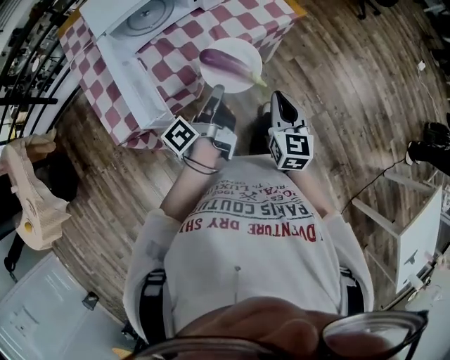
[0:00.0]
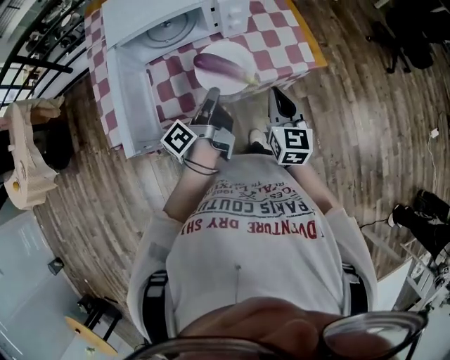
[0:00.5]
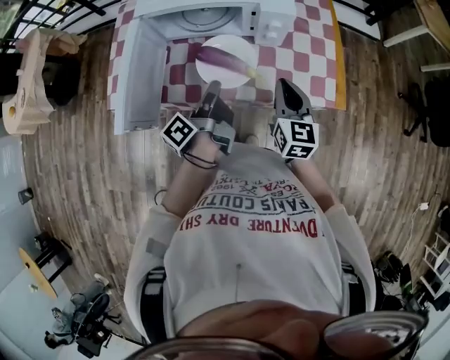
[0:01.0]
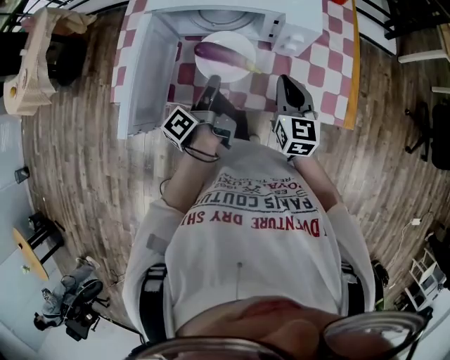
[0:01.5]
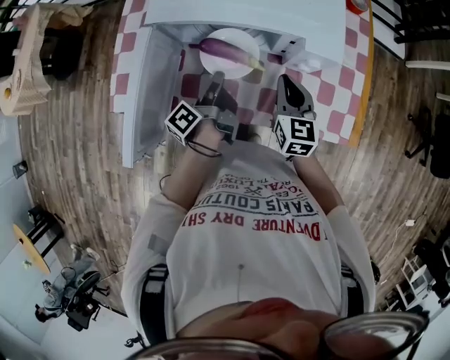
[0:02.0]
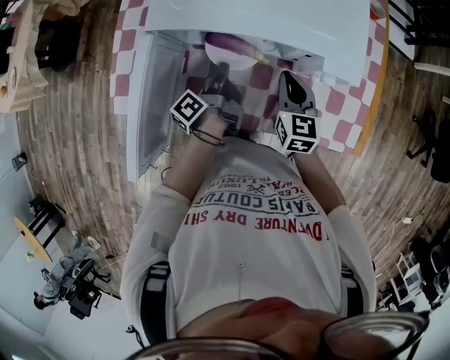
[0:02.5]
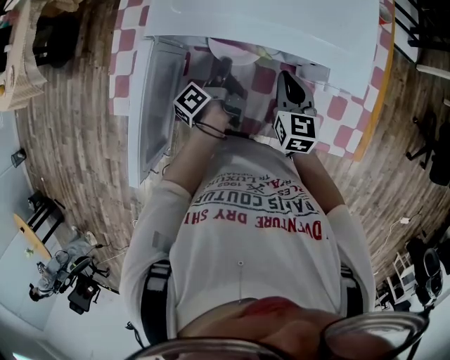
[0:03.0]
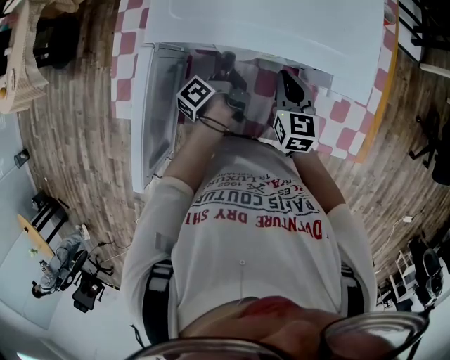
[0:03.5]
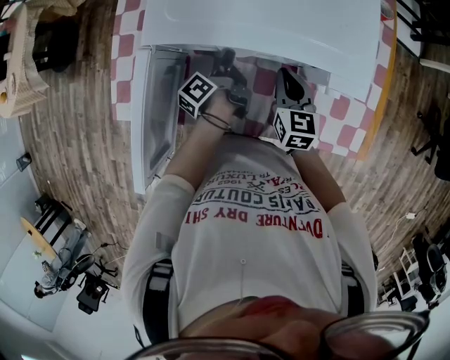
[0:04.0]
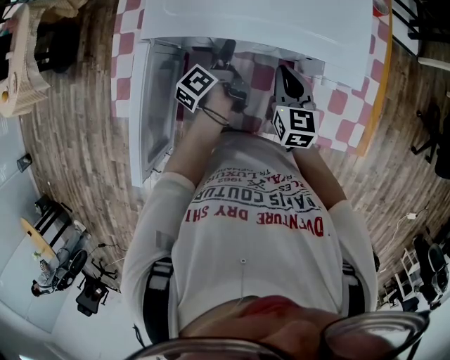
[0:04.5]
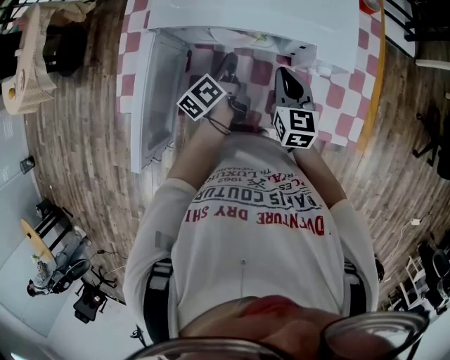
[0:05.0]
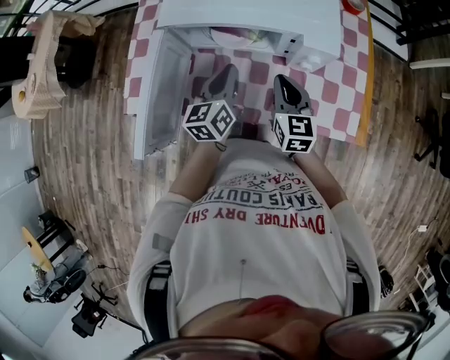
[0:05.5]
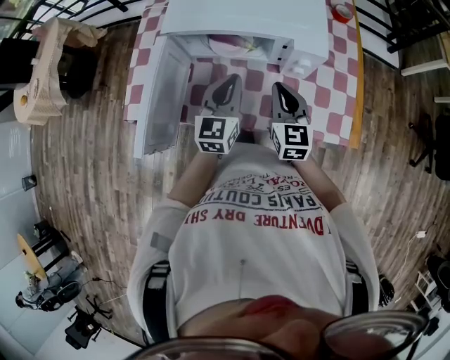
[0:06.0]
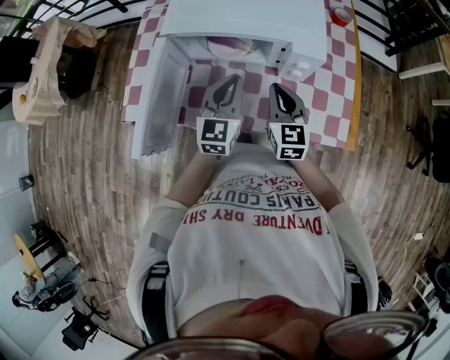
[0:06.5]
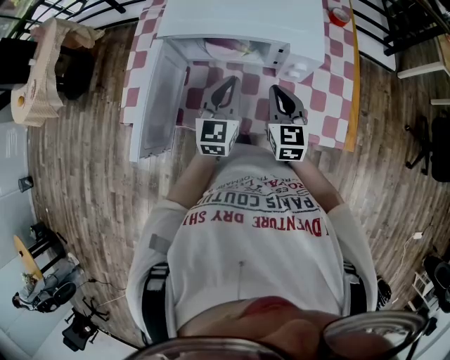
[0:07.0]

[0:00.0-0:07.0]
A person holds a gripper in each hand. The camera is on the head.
0:00.0 to 0:02.0: The right gripper changes place by some 40 cm, and changes its angle by some 40 degrees.
0:02.0 to 0:03.5: The right gripper shifts by about 10 cm.
0:03.5 to 0:05.0: The right gripper ends up roughly 5 cm from where it was.
0:05.0 to 0:07.0: The right gripper changes place by some 10 cm.

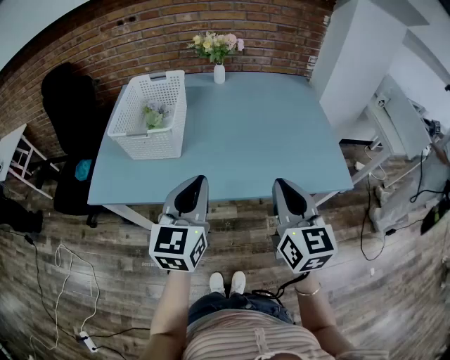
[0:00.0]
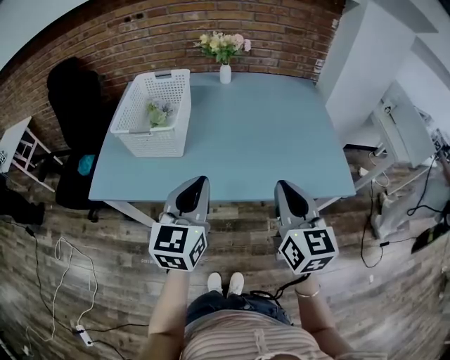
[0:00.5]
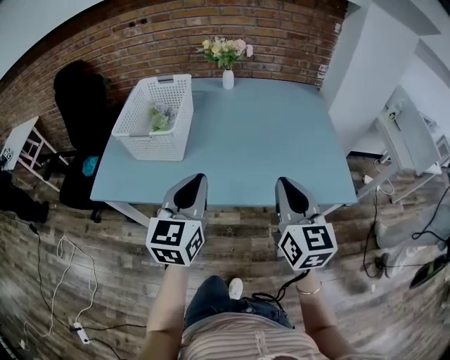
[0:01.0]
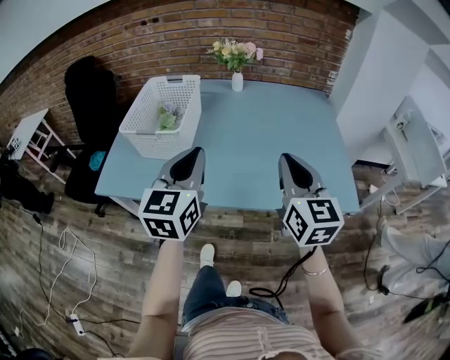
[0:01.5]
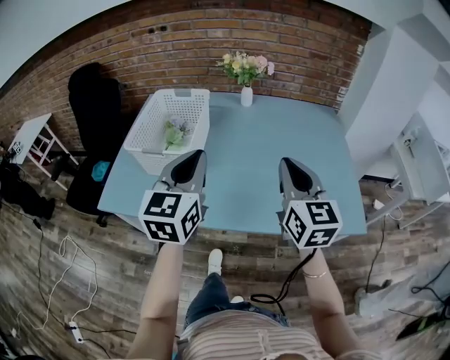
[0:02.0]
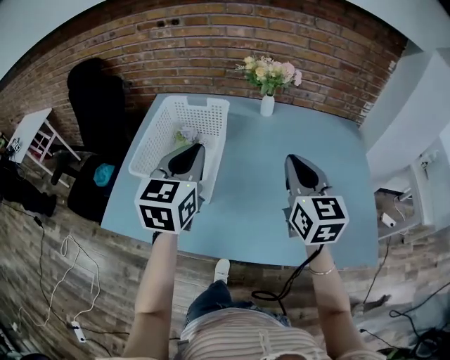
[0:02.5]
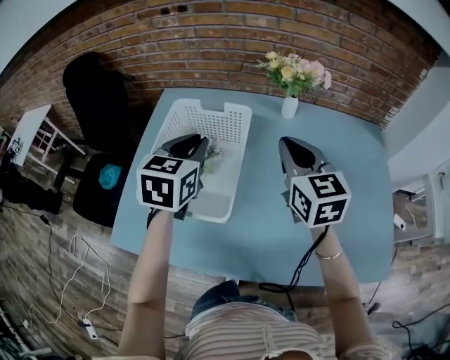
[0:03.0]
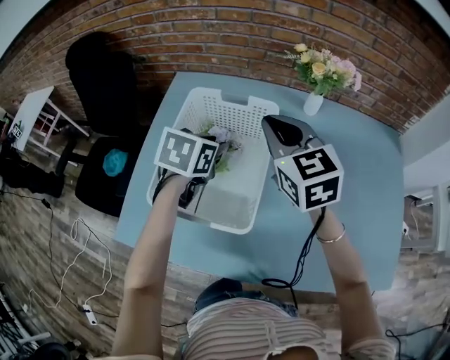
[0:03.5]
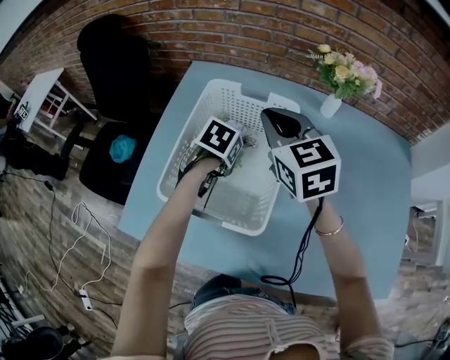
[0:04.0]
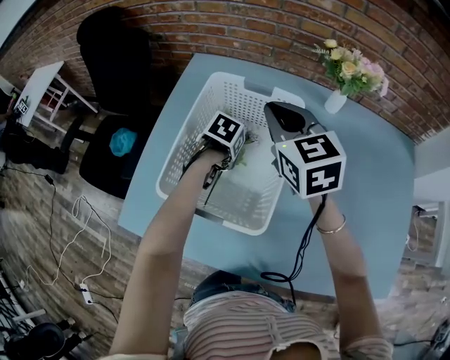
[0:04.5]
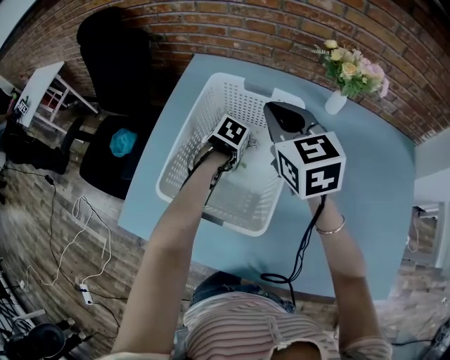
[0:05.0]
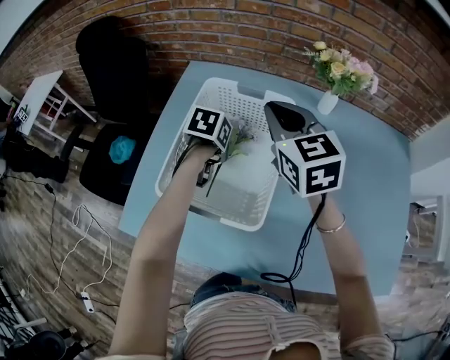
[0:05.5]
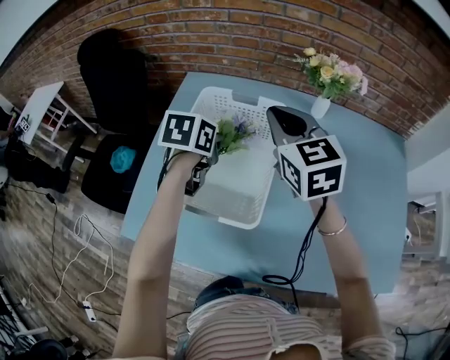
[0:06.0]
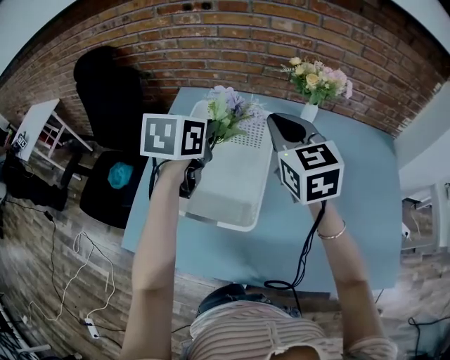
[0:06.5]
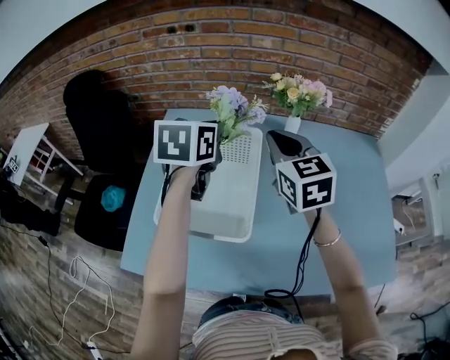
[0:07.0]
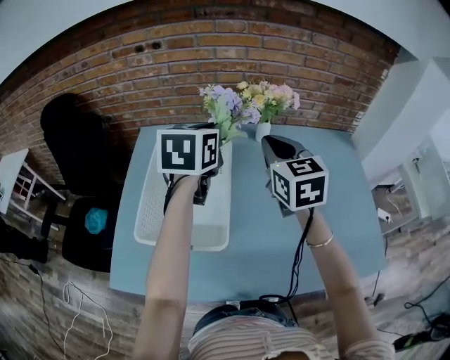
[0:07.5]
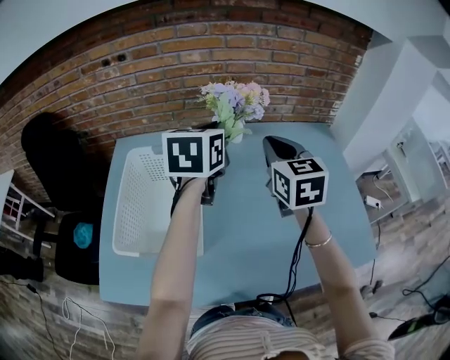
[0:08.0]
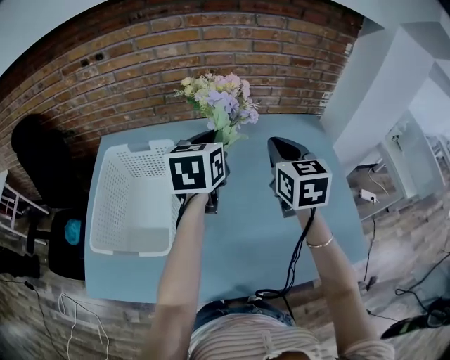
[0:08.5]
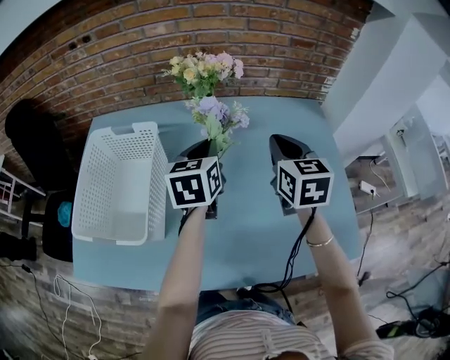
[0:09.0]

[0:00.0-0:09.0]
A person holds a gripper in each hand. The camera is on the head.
0:00.0 to 0:02.0: The right gripper travels forward by some 15 cm; the left gripper is displaced forward and upward by approximately 15 cm.
0:02.0 to 0:04.5: The right gripper goes some 50 cm forward and to the left, and swivels roughly 30 degrees. Meanwhile the left gripper heads forward, downward and to the left, covering about 50 cm, tilts its fingers approximately 70 degrees downward, and opens up.
0:04.5 to 0:07.0: The left gripper moves upward, roughly 30 cm, angles its fingers upward, by some 50 degrees, and closes its fingers. The right gripper shifts by approximately 10 cm.
0:07.0 to 0:09.0: Both grippers travel together to the right, some 30 cm. The right gripper turns by some 20 degrees.

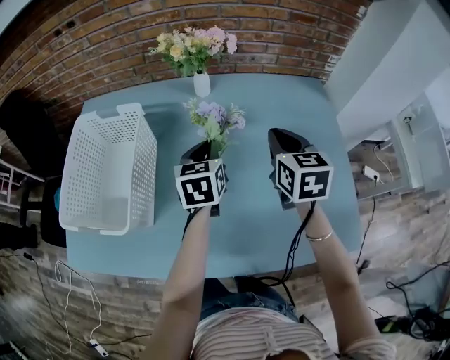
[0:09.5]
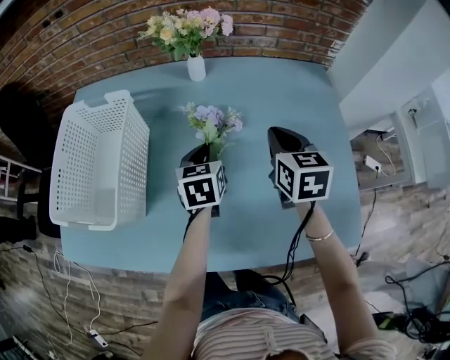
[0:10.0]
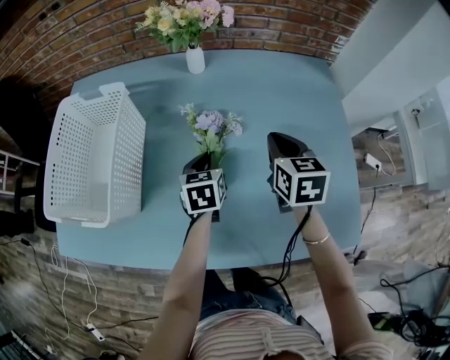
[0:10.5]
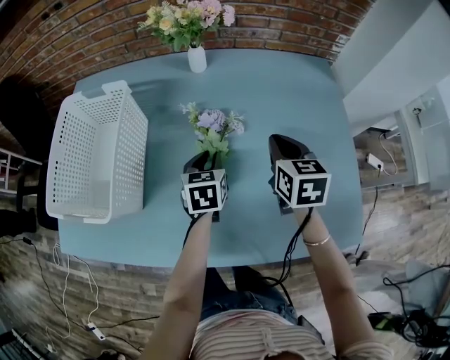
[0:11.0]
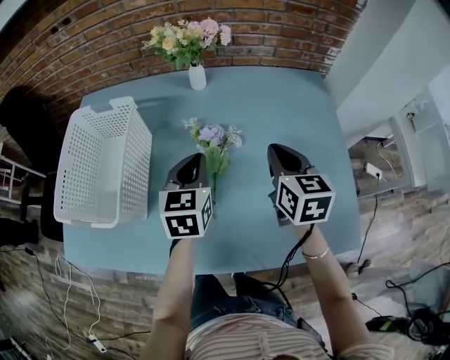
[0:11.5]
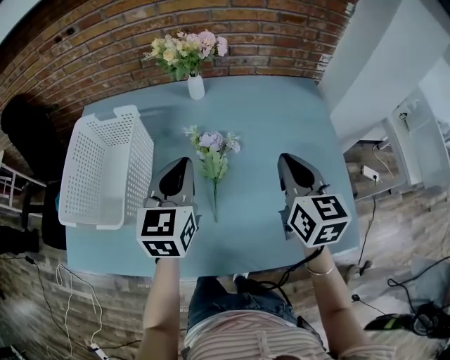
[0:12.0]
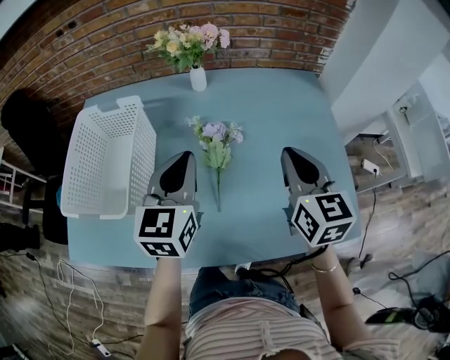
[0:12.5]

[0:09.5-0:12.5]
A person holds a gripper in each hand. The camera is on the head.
0:09.5 to 0:11.0: The two grippers go about 10 cm downward.
0:11.0 to 0:12.5: The left gripper travels upward by approximately 20 cm, rotates about 30 degrees, and closes its fingers; the right gripper moves upward and backward, about 15 cm.

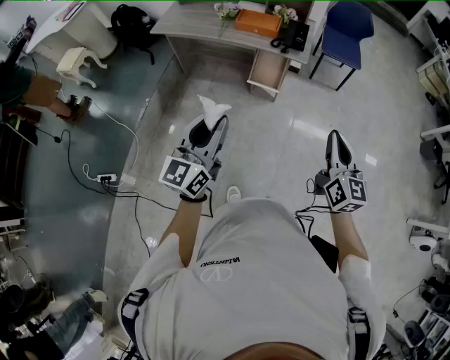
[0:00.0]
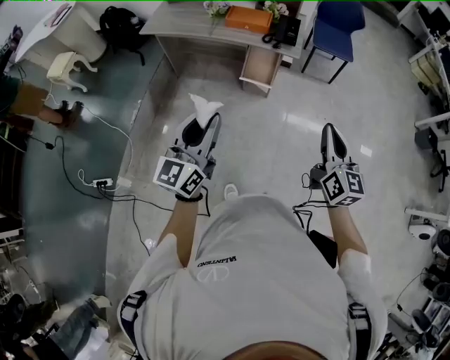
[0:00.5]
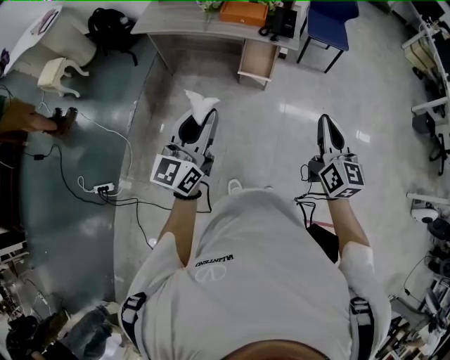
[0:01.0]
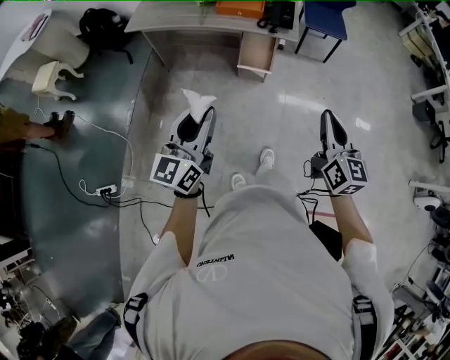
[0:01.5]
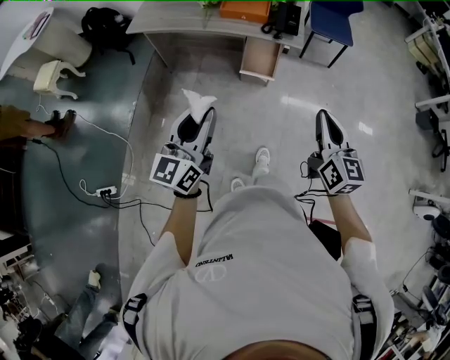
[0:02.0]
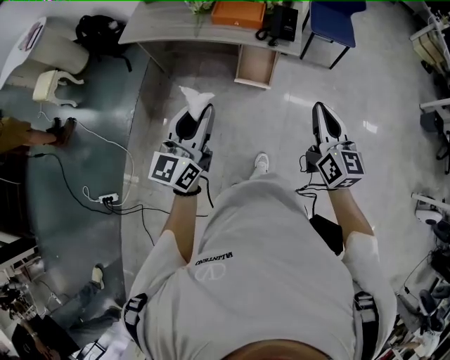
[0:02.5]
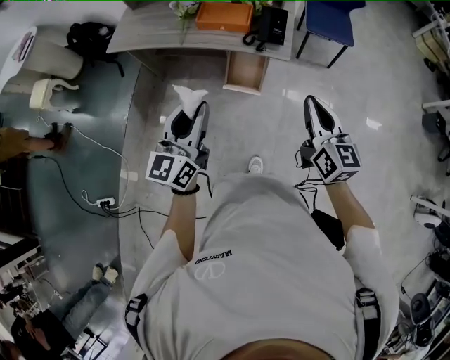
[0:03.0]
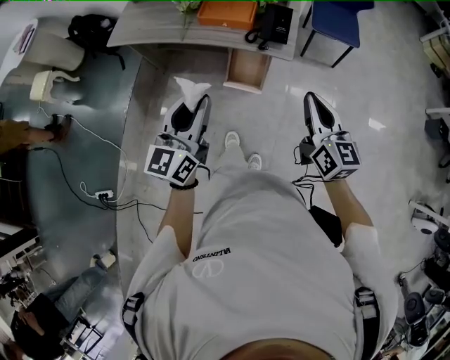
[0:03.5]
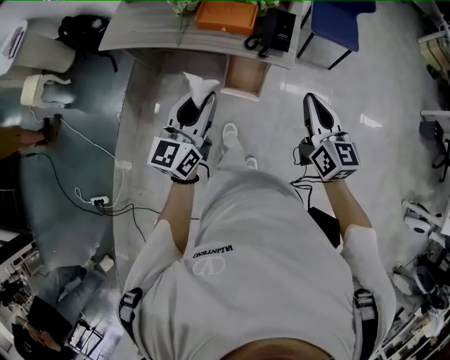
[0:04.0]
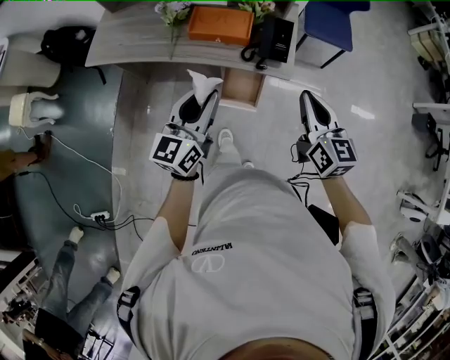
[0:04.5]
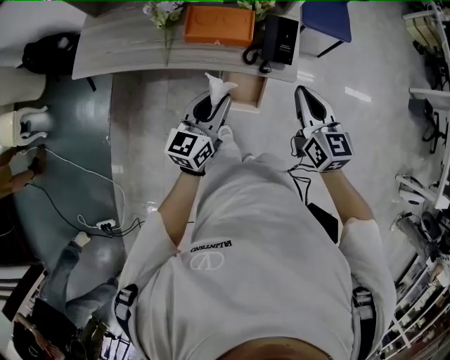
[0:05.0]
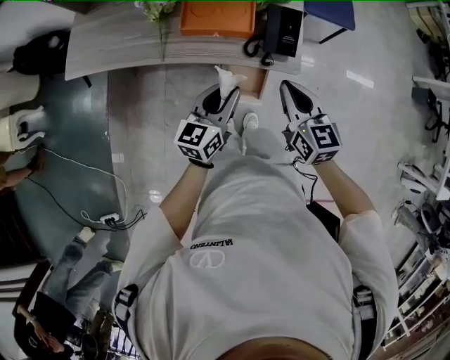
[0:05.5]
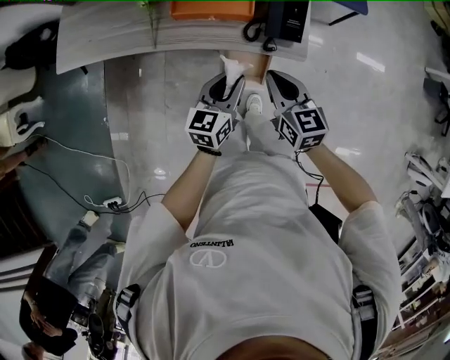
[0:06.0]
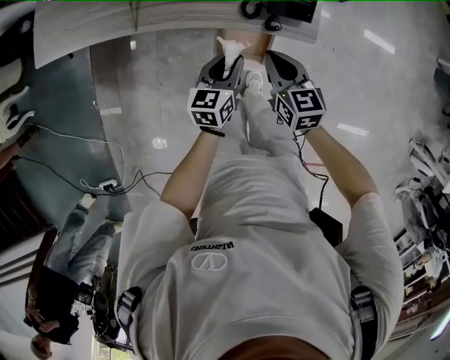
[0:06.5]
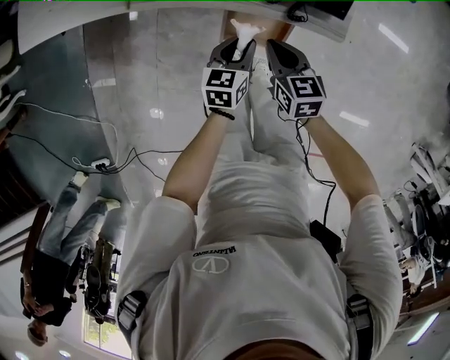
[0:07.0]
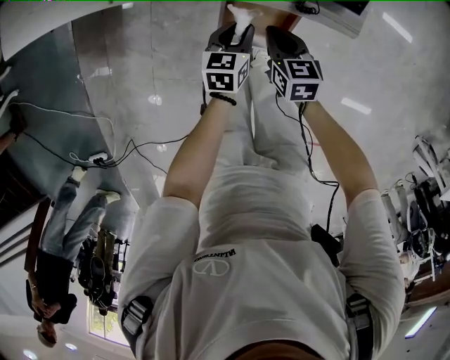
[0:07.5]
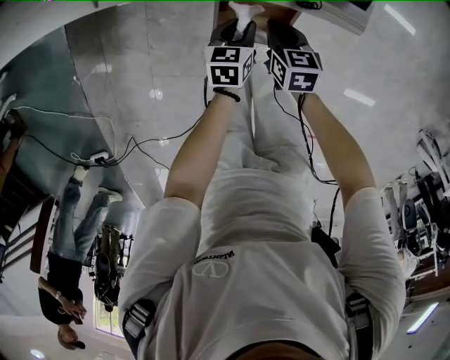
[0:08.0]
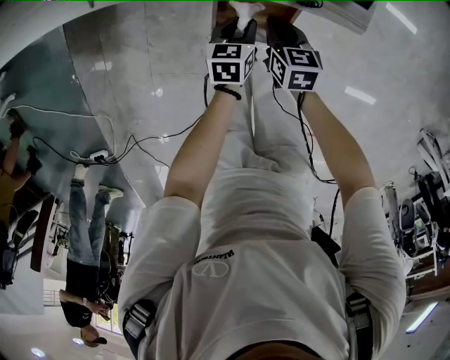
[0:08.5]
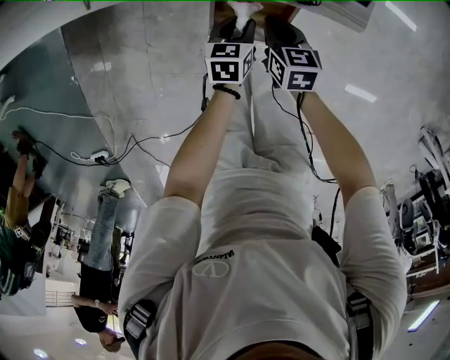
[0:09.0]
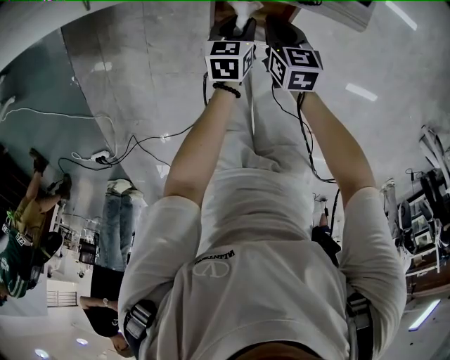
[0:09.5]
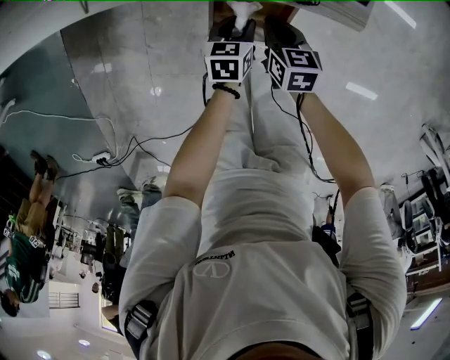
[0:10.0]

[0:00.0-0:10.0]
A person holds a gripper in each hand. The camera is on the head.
0:00.0 to 0:02.0: The grippers both shift to the left and forward by roughly 10 cm.
0:02.0 to 0:04.0: Both grippers travel together forward, roughly 25 cm.
0:04.0 to 0:06.0: The right gripper moves downward, forward and to the left, approximately 30 cm; the left gripper is displaced downward and forward by about 30 cm, and turns by approximately 30 degrees.
0:06.0 to 0:08.0: The two grippers go roughly 30 cm downward. The left gripper turns by some 30 degrees. Meanwhile the right gripper swivels approximately 20 degrees.
0:08.0 to 0:10.0: The grippers move only a little.
